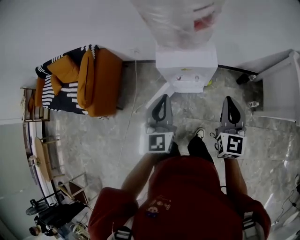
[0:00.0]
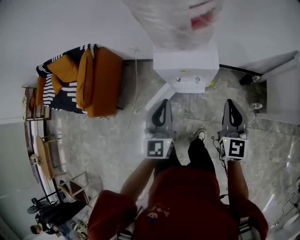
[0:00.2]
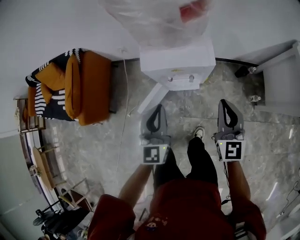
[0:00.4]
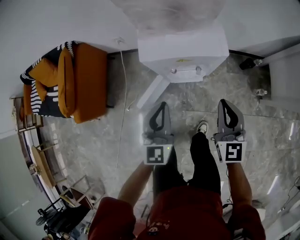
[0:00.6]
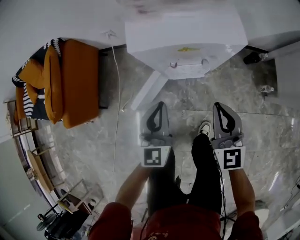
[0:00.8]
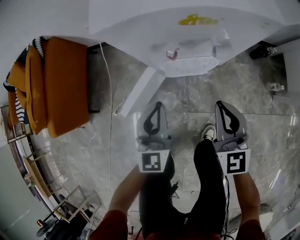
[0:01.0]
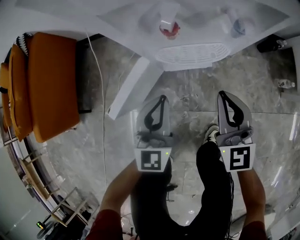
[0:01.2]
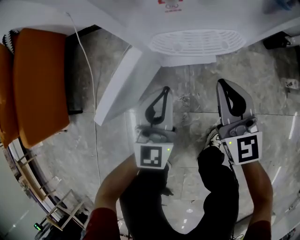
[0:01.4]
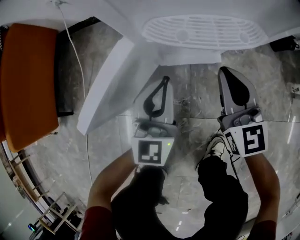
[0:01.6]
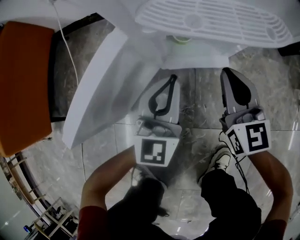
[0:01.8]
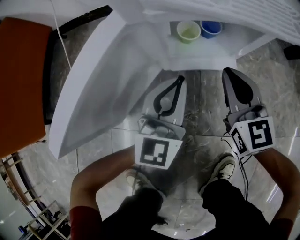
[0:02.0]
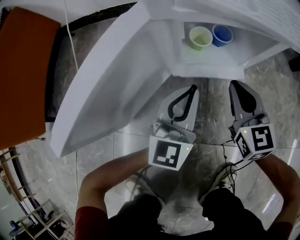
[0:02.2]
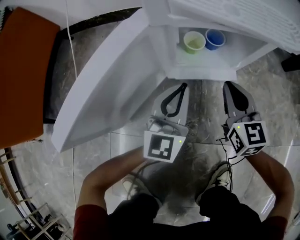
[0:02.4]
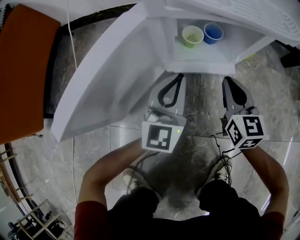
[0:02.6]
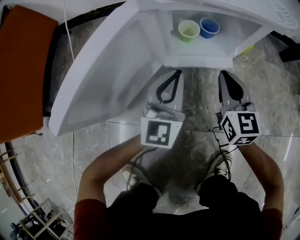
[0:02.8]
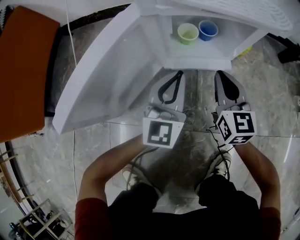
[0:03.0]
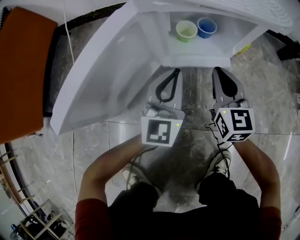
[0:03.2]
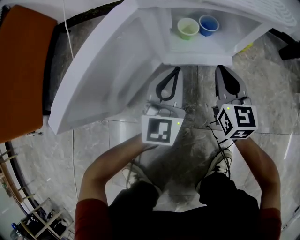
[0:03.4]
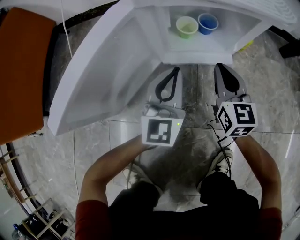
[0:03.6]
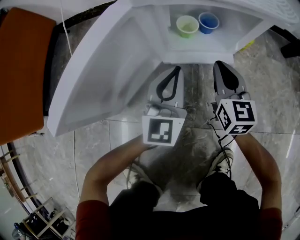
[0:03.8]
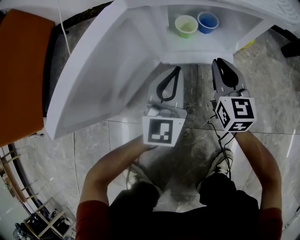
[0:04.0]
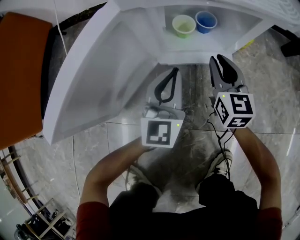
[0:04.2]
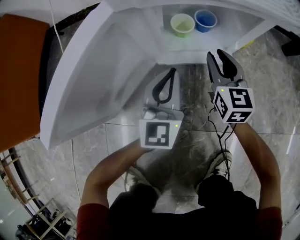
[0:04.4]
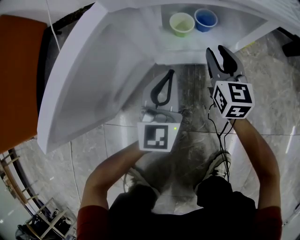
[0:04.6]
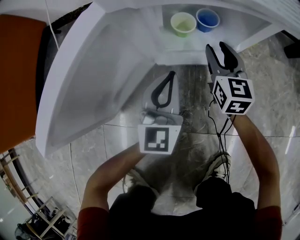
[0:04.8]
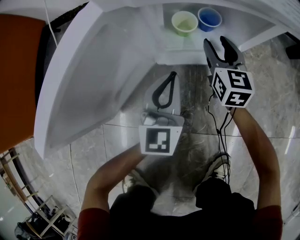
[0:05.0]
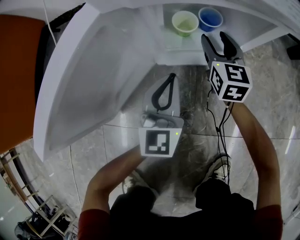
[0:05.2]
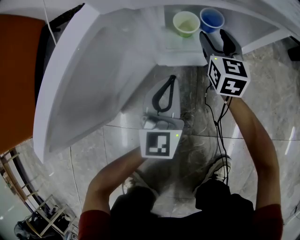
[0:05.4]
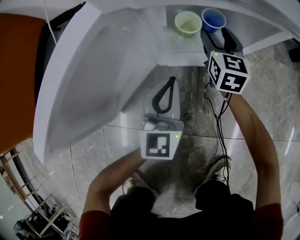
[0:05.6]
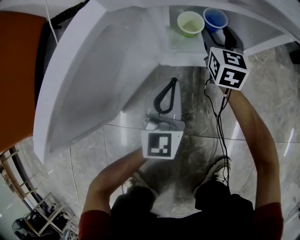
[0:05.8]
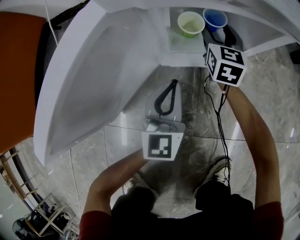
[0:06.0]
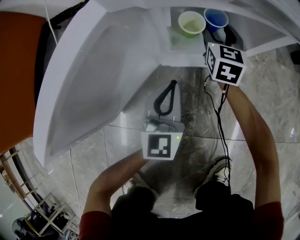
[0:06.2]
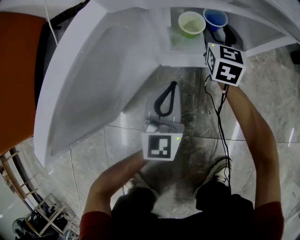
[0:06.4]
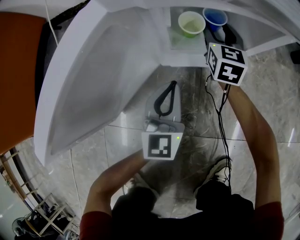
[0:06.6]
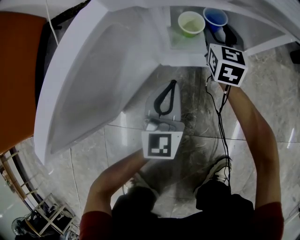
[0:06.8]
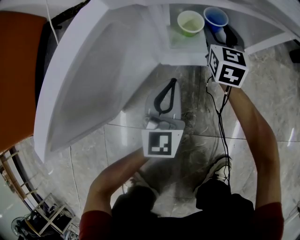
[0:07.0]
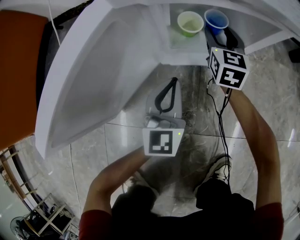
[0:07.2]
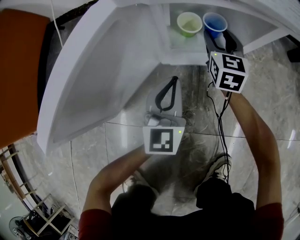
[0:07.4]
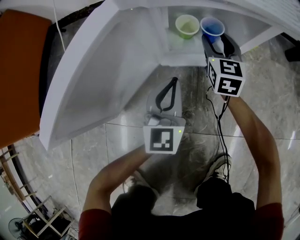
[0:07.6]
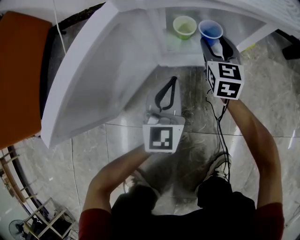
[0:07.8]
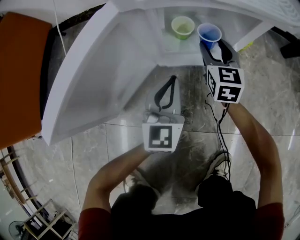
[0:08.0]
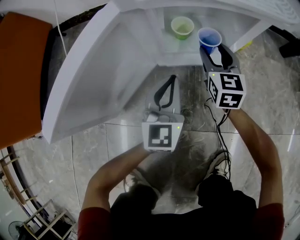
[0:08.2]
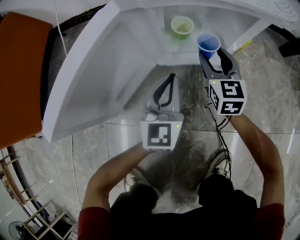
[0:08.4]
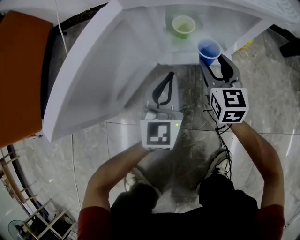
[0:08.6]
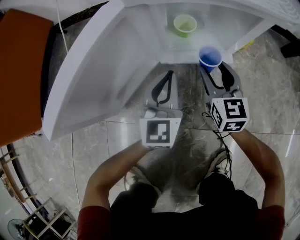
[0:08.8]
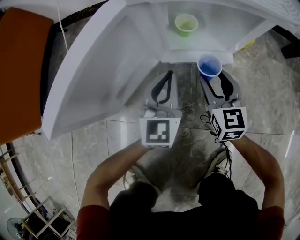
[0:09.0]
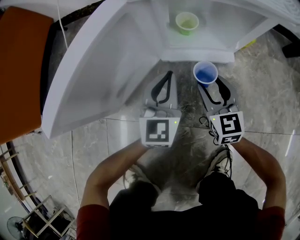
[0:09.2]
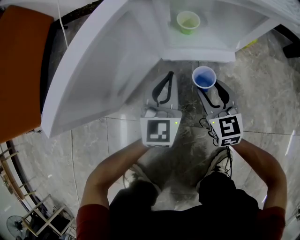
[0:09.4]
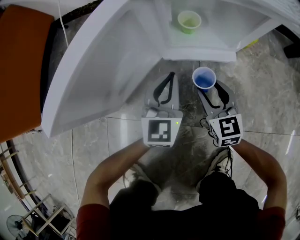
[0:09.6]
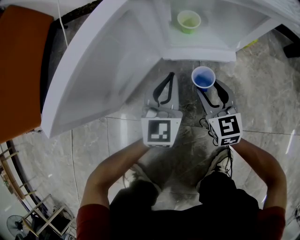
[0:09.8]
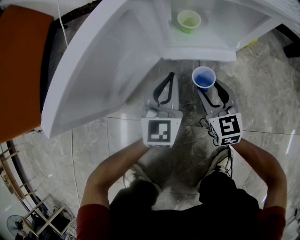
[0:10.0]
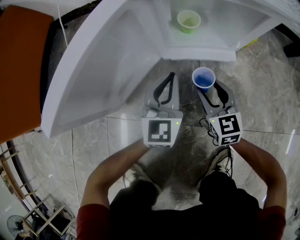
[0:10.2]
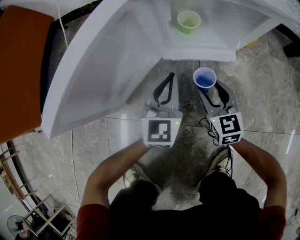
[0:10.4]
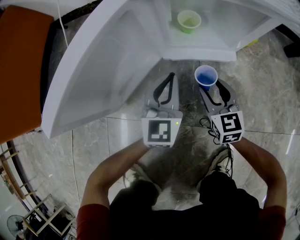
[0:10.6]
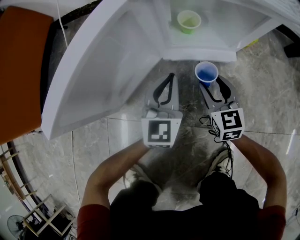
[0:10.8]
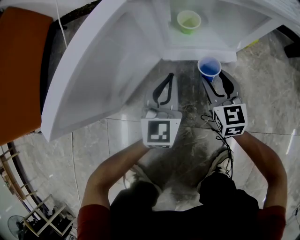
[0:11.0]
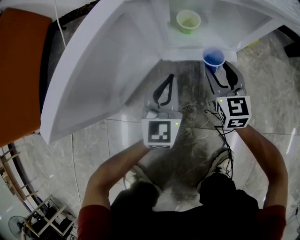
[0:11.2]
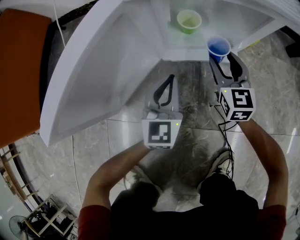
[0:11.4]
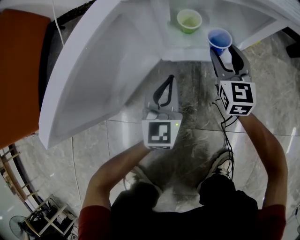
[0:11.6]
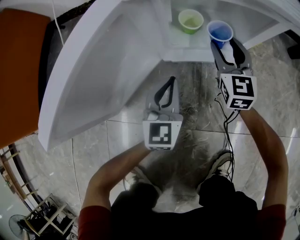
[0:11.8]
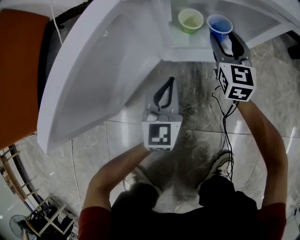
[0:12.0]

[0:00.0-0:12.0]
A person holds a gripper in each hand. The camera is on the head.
0.0 to 1.6 s: The grippers both shift downward by some 70 cm.
1.6 to 3.0 s: The two grippers go some 15 cm downward.
3.0 to 4.4 s: The right gripper travels forward by about 5 cm, and opens.
4.4 to 6.0 s: The right gripper moves forward, roughly 15 cm, and opens up.
6.0 to 7.6 s: The right gripper moves some 5 cm.
7.6 to 9.0 s: The right gripper travels backward by about 15 cm.
9.0 to 10.4 s: The right gripper shifts by approximately 5 cm.
10.4 to 12.0 s: The right gripper moves forward, about 15 cm.

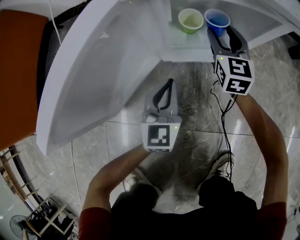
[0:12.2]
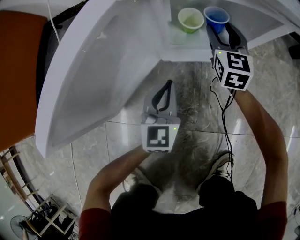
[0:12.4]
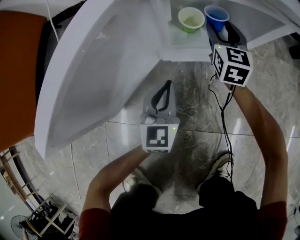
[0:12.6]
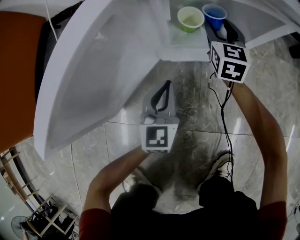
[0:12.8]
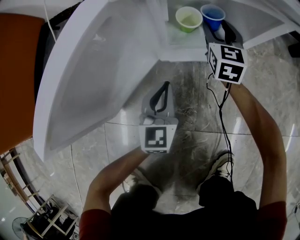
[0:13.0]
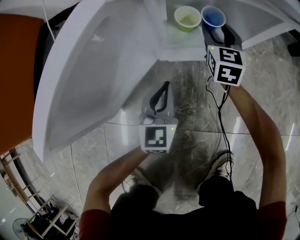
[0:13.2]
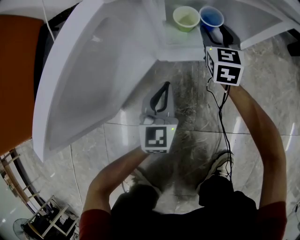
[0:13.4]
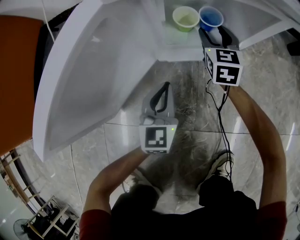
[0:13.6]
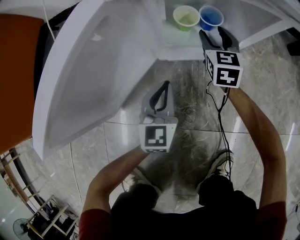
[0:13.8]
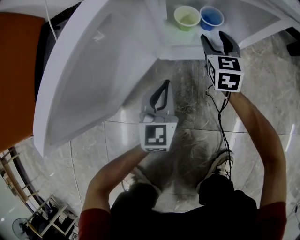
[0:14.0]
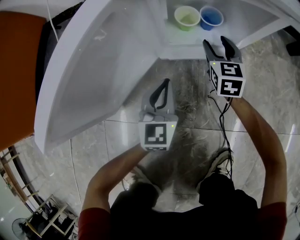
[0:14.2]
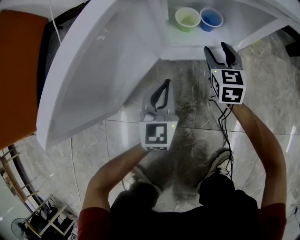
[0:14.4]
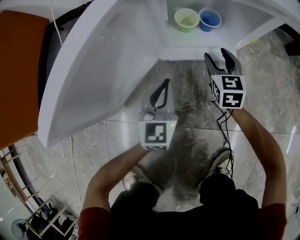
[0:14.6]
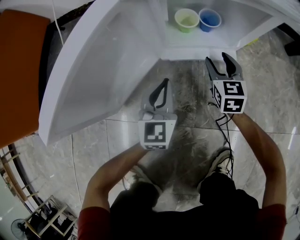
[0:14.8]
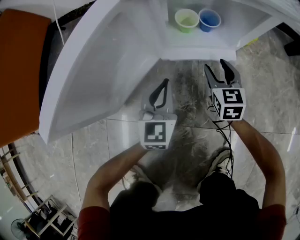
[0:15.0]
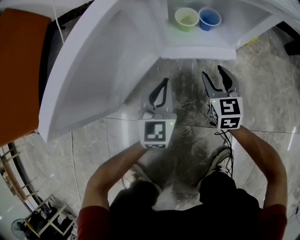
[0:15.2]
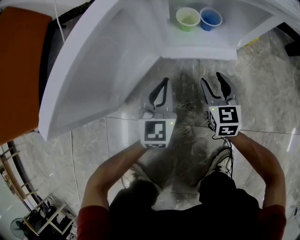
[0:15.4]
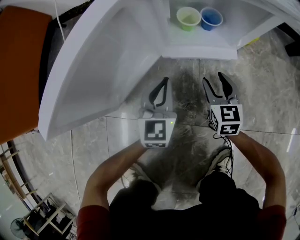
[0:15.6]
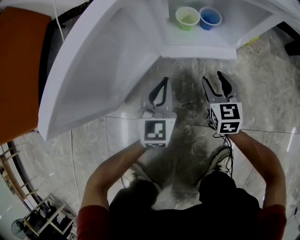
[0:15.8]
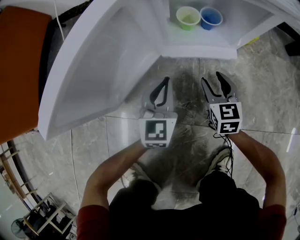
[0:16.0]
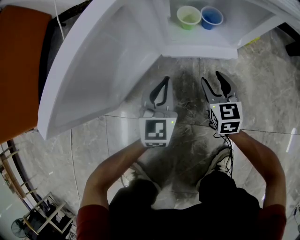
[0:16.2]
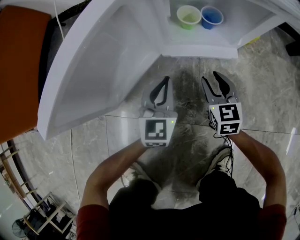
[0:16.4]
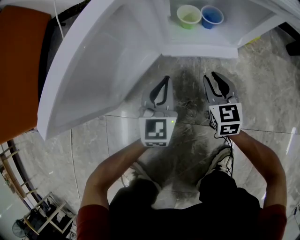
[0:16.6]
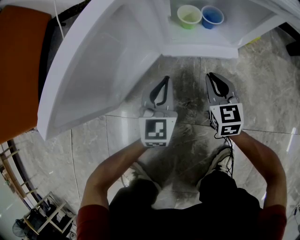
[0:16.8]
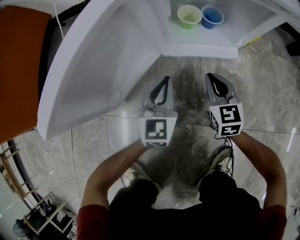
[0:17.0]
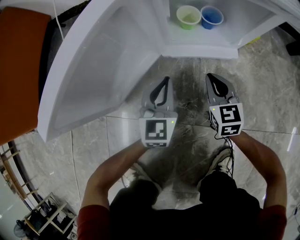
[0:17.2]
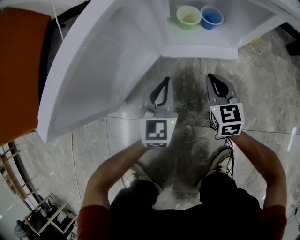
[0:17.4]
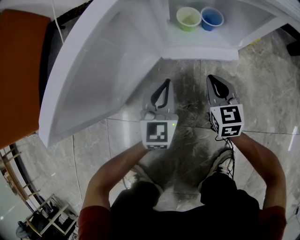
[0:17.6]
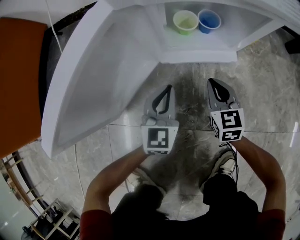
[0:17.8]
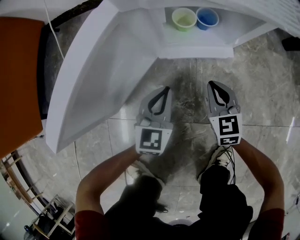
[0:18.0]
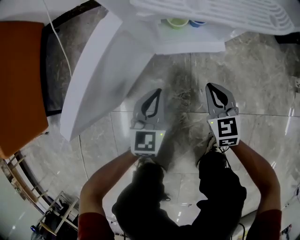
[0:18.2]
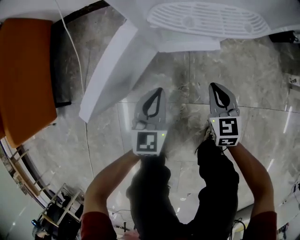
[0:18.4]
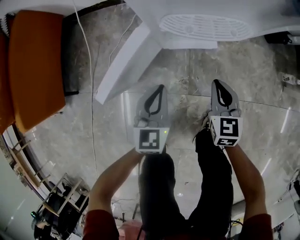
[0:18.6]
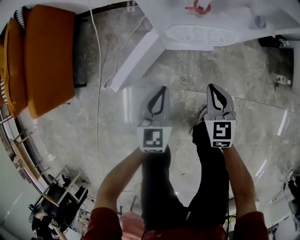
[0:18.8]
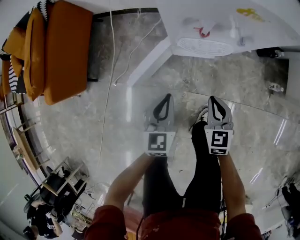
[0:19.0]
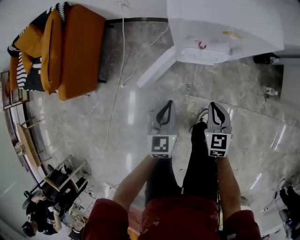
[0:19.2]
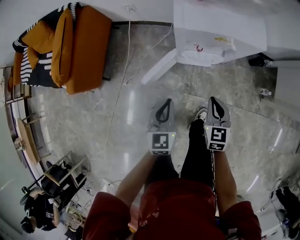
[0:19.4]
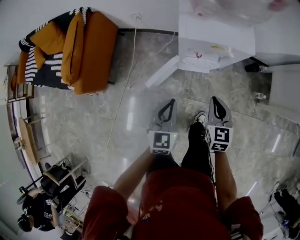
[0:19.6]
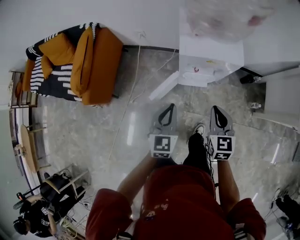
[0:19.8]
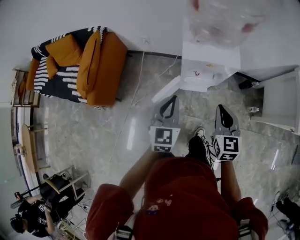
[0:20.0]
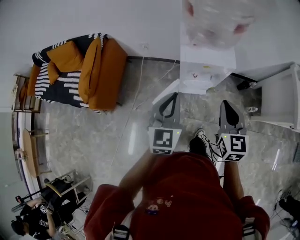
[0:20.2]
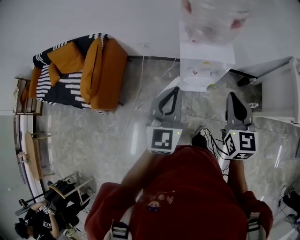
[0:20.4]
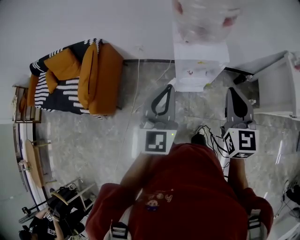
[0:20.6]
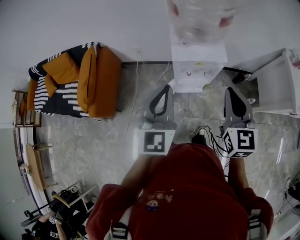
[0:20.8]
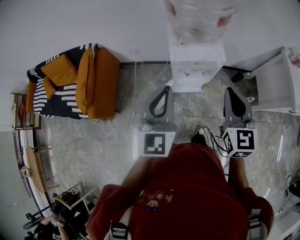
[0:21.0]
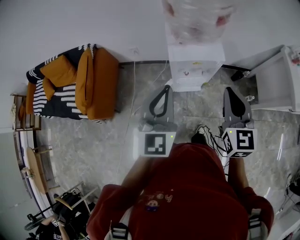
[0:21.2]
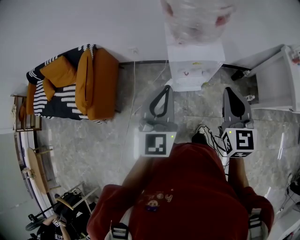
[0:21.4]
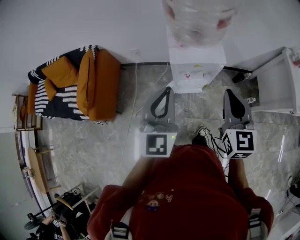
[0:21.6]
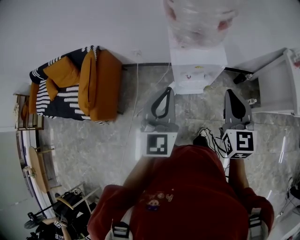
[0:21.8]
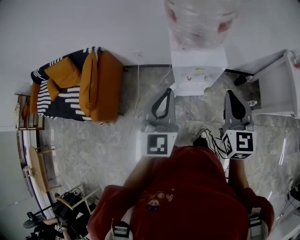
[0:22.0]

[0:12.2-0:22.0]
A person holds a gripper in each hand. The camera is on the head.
12.2 to 13.6 s: The grippers make only small movements.
13.6 to 15.0 s: The right gripper is displaced backward by approximately 15 cm.
15.0 to 16.4 s: The right gripper travels backward by approximately 5 cm.
16.4 to 17.8 s: The right gripper closes.
17.8 to 19.2 s: Both grippers move upward, roughly 50 cm.
19.2 to 20.6 s: Both grippers travel together upward, roughly 50 cm. The right gripper turns by roughly 30 degrees. Meanwhile the left gripper swivels approximately 30 degrees.
20.6 to 22.0 s: There are only small adjustments of the grippers.

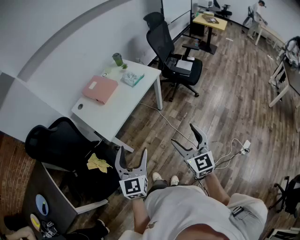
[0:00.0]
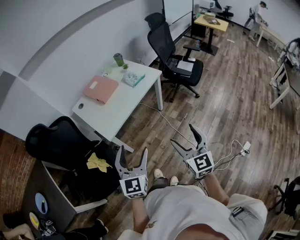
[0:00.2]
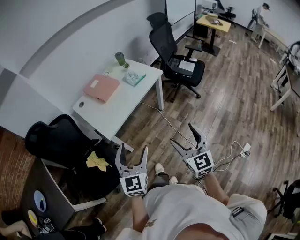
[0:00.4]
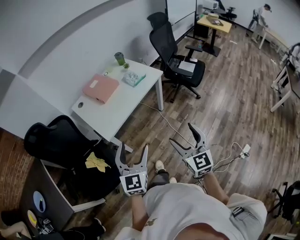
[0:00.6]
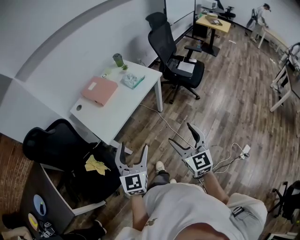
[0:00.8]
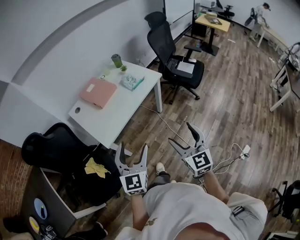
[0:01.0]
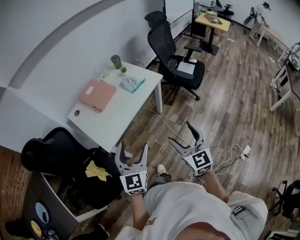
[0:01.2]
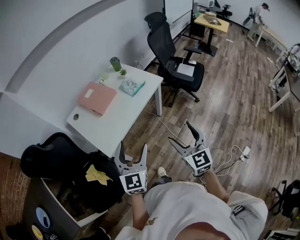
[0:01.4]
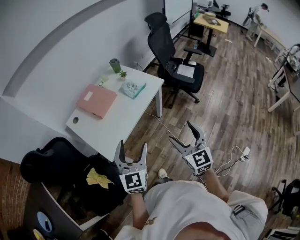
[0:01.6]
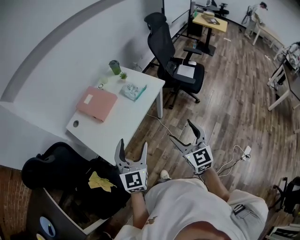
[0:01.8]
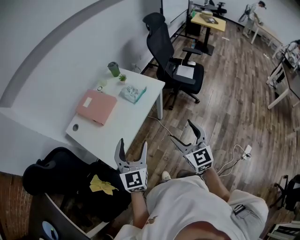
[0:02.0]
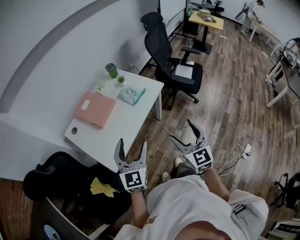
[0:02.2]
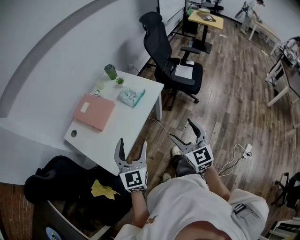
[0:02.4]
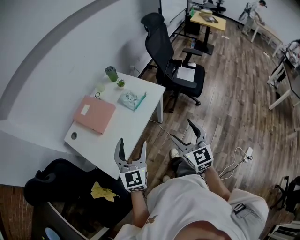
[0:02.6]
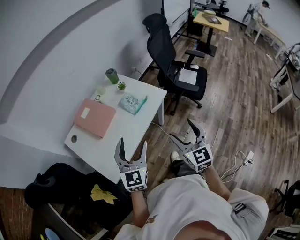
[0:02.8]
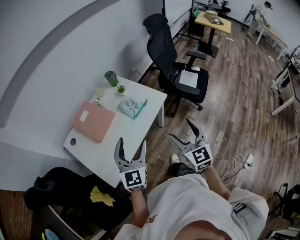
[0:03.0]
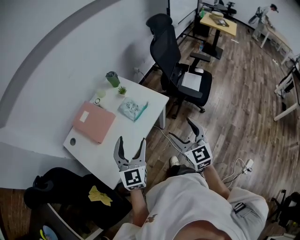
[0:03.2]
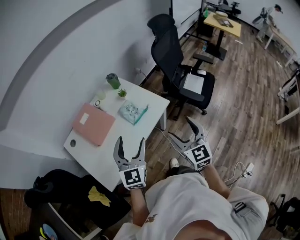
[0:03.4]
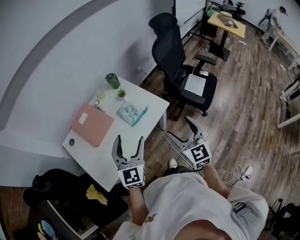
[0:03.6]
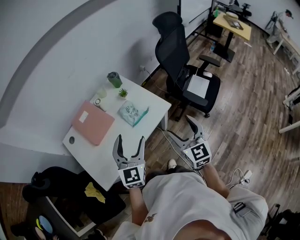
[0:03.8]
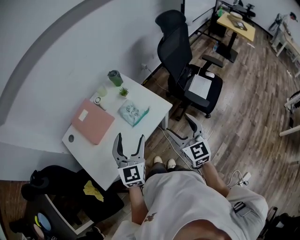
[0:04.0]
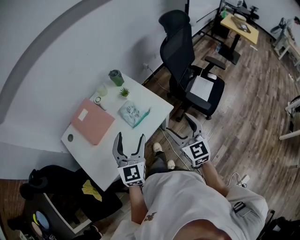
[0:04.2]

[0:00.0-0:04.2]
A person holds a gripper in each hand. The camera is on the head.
0.0 to 1.4 s: The grippers both shift forward by approximately 15 cm.
1.4 to 2.8 s: Both grippers move forward, roughly 20 cm.
2.8 to 4.2 s: The left gripper heads forward and to the right, covering roughly 20 cm; the right gripper is displaced forward by approximately 20 cm.
